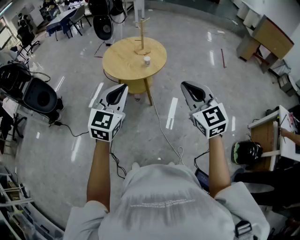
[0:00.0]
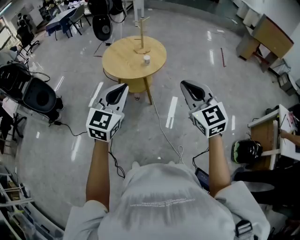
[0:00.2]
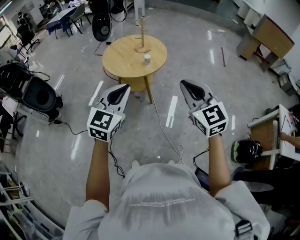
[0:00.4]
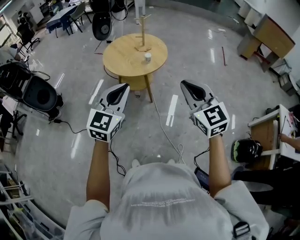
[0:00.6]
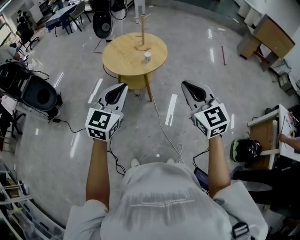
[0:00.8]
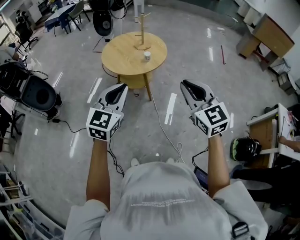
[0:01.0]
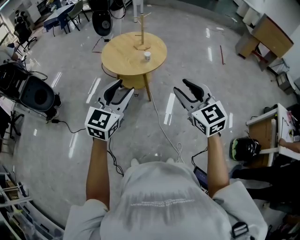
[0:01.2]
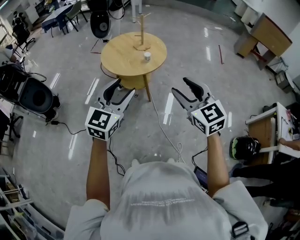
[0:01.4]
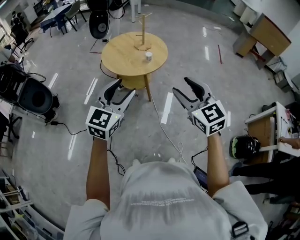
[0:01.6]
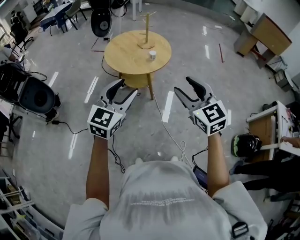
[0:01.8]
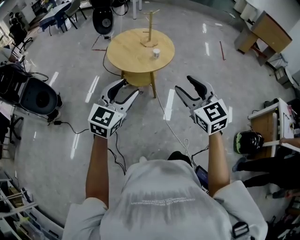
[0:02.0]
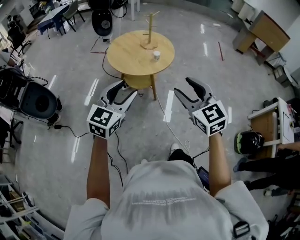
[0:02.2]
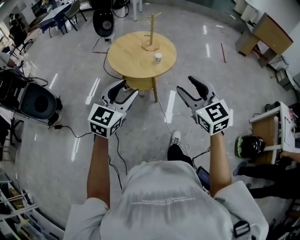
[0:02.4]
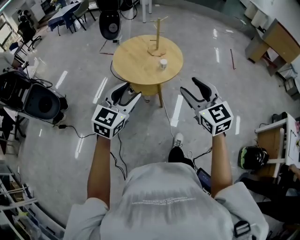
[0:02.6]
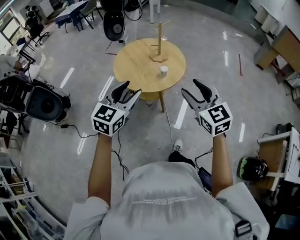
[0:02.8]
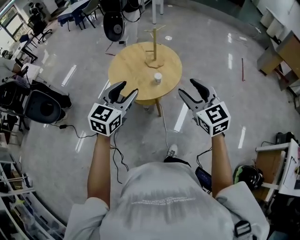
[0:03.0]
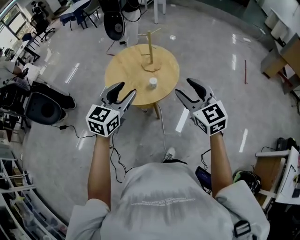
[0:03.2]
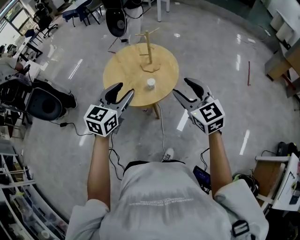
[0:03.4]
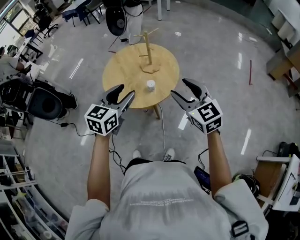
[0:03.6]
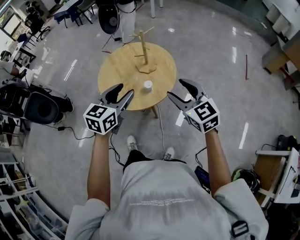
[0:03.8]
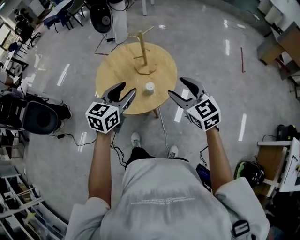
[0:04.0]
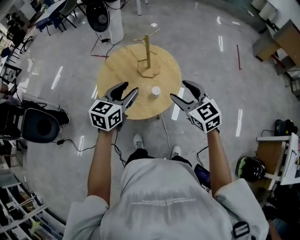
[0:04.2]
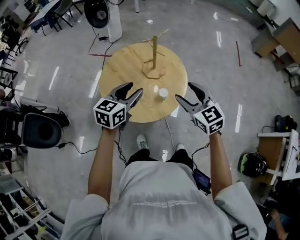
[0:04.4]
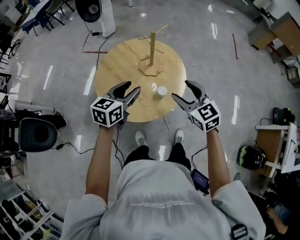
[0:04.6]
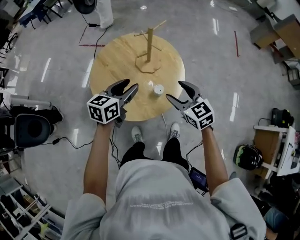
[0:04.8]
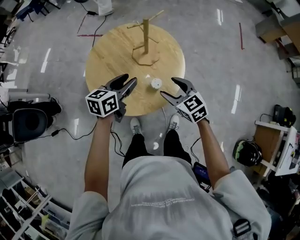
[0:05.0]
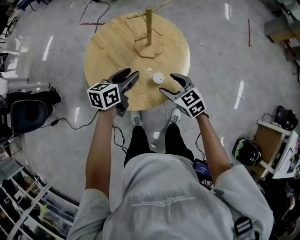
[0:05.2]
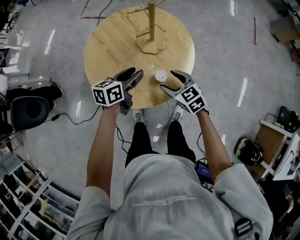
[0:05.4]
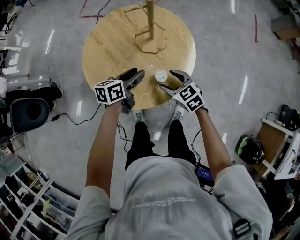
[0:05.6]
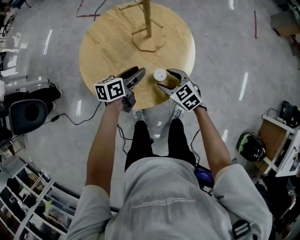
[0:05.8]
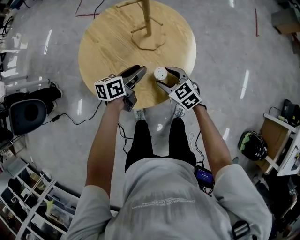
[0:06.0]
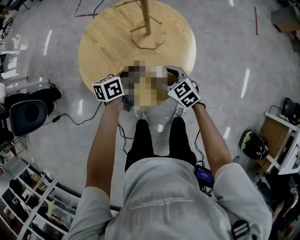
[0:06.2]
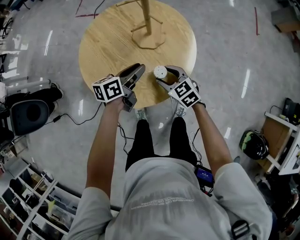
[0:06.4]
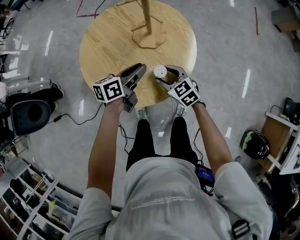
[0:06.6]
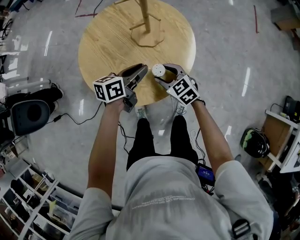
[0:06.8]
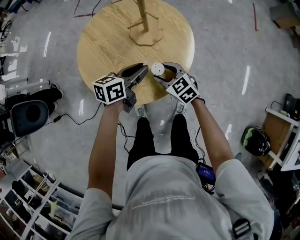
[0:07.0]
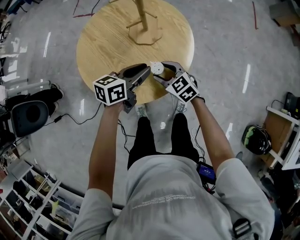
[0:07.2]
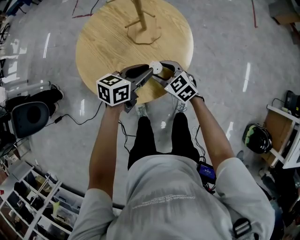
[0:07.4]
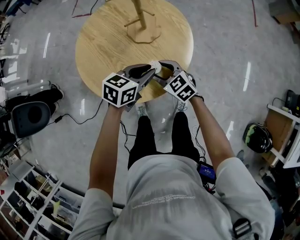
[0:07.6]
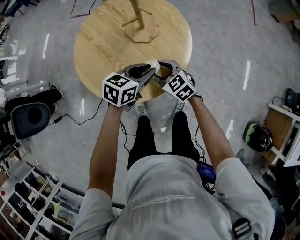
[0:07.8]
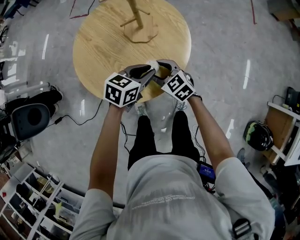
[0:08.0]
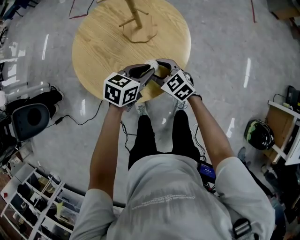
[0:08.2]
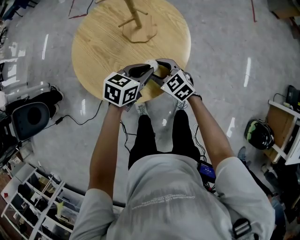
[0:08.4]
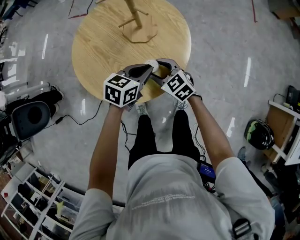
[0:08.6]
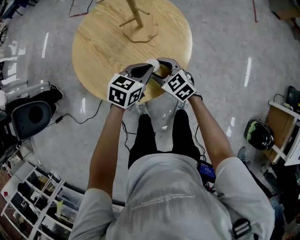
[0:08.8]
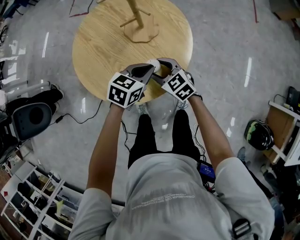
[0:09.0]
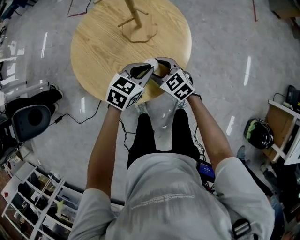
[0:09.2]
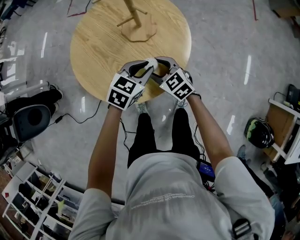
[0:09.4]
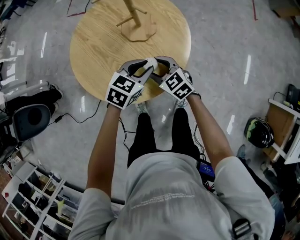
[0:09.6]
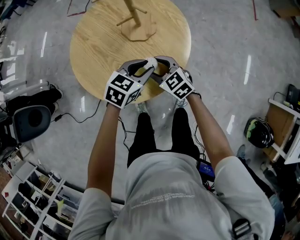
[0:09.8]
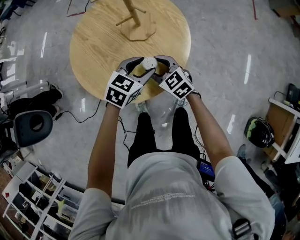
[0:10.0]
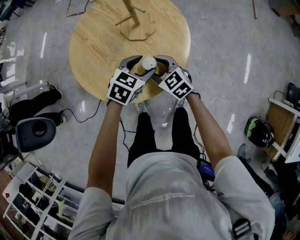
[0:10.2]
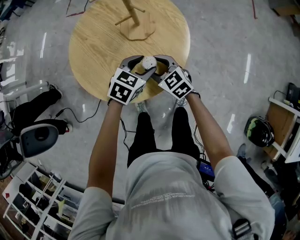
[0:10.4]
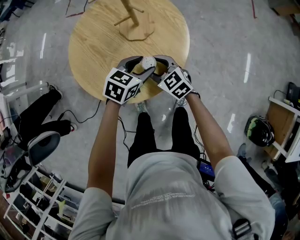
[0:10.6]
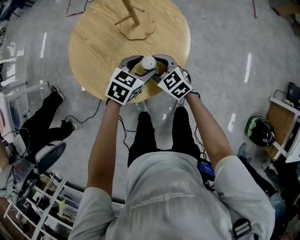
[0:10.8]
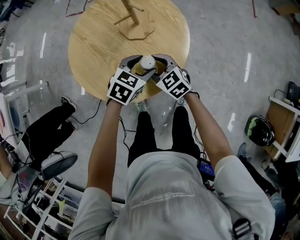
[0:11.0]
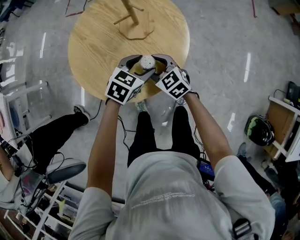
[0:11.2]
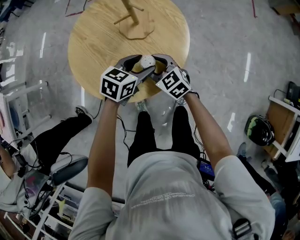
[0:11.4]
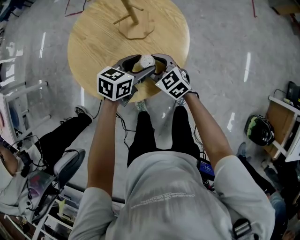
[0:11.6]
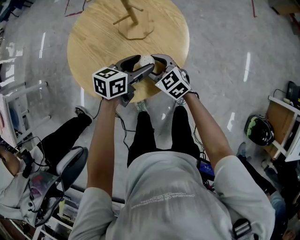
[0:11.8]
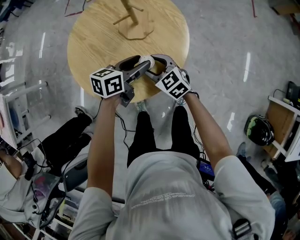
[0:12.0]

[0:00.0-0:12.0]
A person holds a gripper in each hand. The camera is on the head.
0.0 to 1.6 s: The right gripper travels to the left by some 5 cm, and opens its fingers, while the left gripper opens its fingers.
1.6 to 3.0 s: The grippers both shift forward by some 25 cm.
3.0 to 4.4 s: Both grippers travel together forward and downward, some 25 cm. The left gripper changes its angle by approximately 20 degrees.
4.4 to 6.0 s: Both grippers move downward, roughly 25 cm. The right gripper rotates approximately 30 degrees; the left gripper swivels some 40 degrees.
6.0 to 7.6 s: The left gripper goes about 10 cm to the right and backward, and changes its angle by approximately 30 degrees.
7.6 to 9.0 s: The grippers make only small movements.
9.0 to 10.4 s: The left gripper opens up.
10.4 to 12.0 s: The left gripper swivels some 40 degrees.

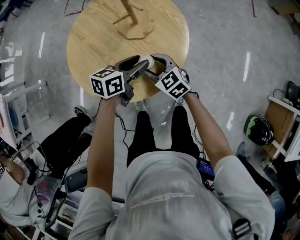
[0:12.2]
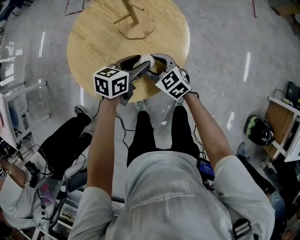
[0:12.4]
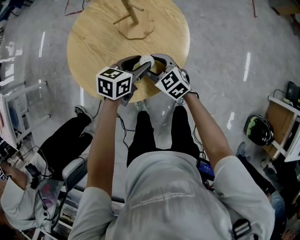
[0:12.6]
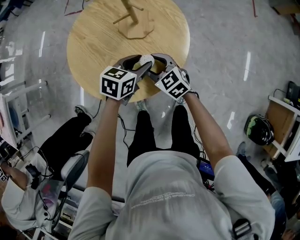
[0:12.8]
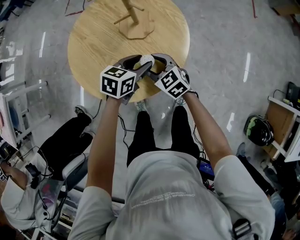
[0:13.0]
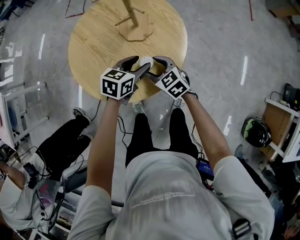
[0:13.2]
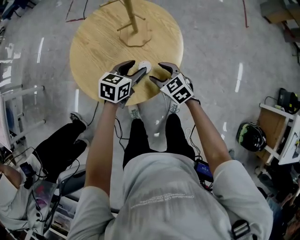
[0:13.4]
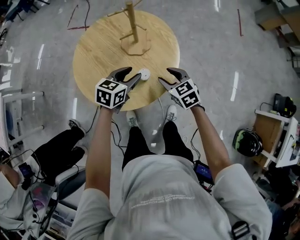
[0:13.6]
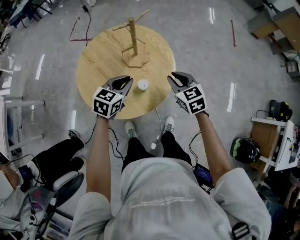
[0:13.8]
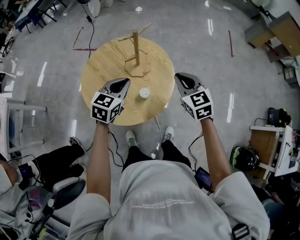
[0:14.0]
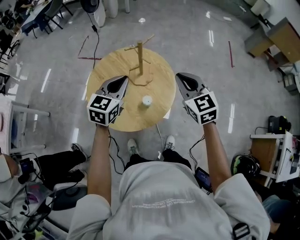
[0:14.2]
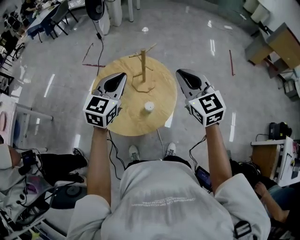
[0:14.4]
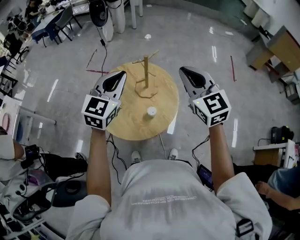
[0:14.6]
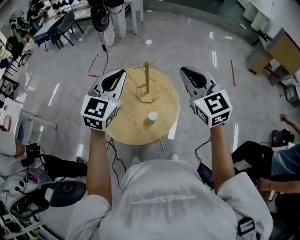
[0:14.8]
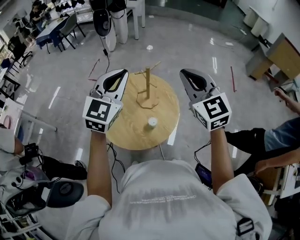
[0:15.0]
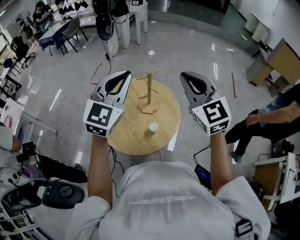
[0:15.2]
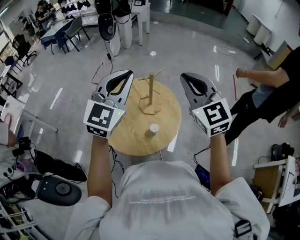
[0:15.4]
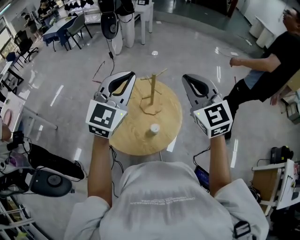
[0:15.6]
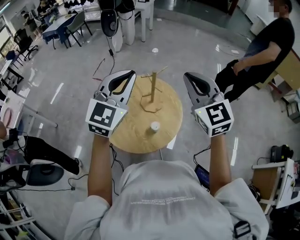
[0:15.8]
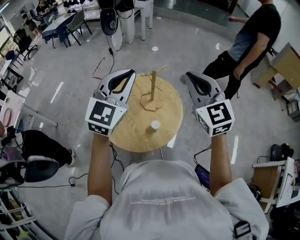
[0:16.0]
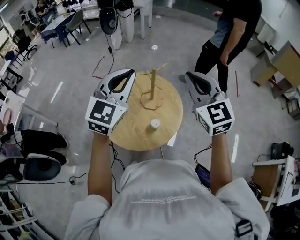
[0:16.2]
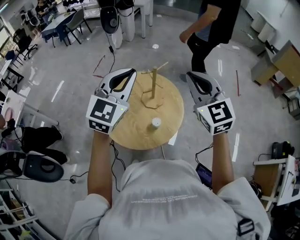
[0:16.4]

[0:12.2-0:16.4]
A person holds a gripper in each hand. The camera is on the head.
12.2 to 13.6 s: The left gripper rotates approximately 20 degrees; the right gripper travels to the right and upward by some 10 cm.
13.6 to 15.0 s: The grippers both shift upward by approximately 40 cm. The left gripper tilts its fingers approximately 30 degrees upward, and closes its fingers; the right gripper tips its fingers upward by about 30 degrees, and closes.
15.0 to 16.4 s: There are only small adjustments of the grippers.

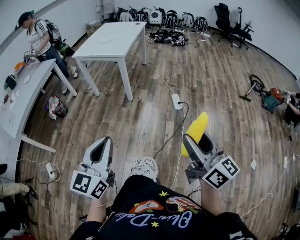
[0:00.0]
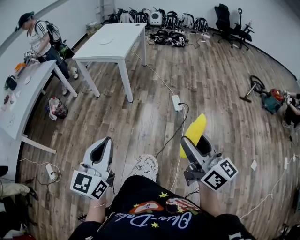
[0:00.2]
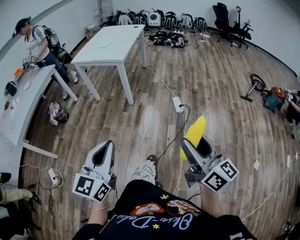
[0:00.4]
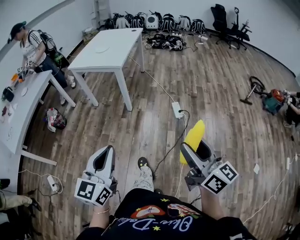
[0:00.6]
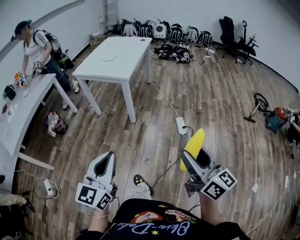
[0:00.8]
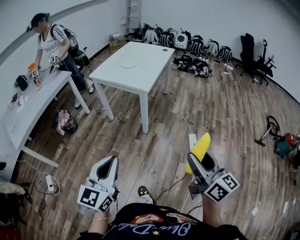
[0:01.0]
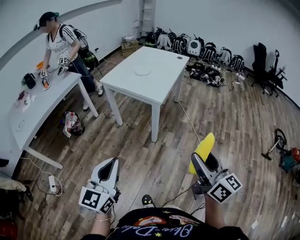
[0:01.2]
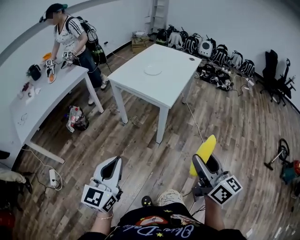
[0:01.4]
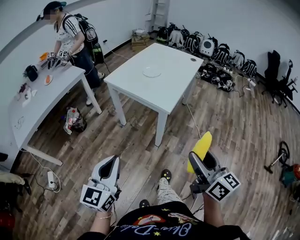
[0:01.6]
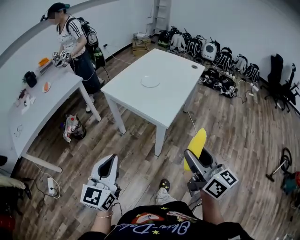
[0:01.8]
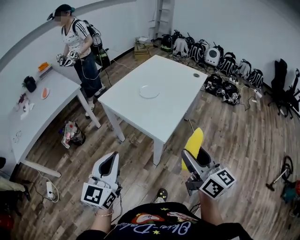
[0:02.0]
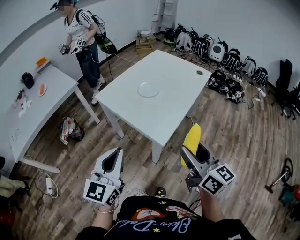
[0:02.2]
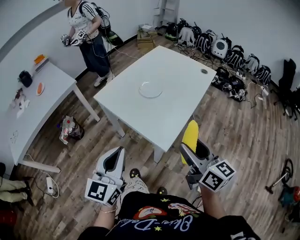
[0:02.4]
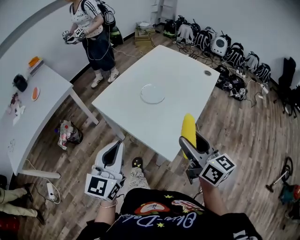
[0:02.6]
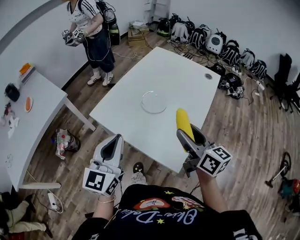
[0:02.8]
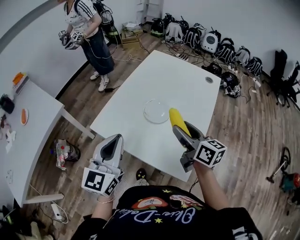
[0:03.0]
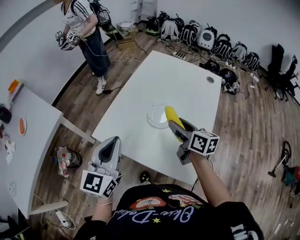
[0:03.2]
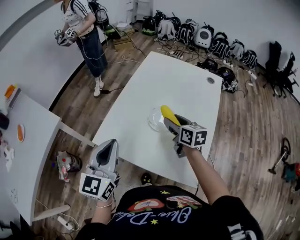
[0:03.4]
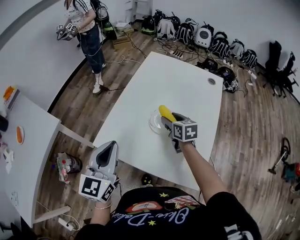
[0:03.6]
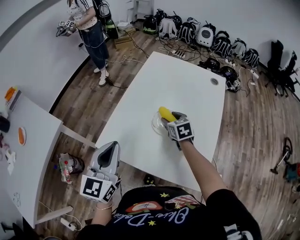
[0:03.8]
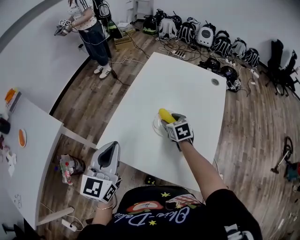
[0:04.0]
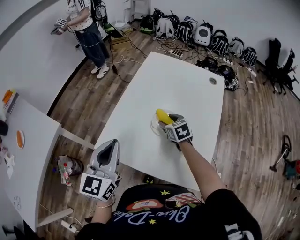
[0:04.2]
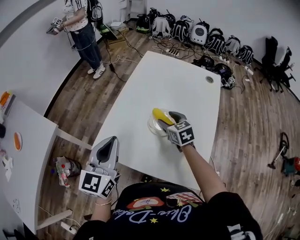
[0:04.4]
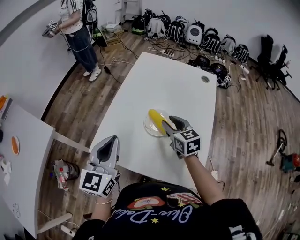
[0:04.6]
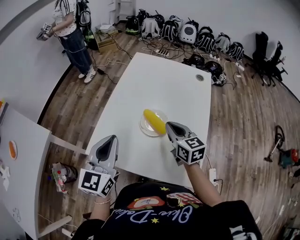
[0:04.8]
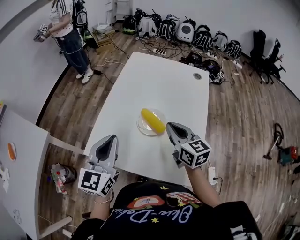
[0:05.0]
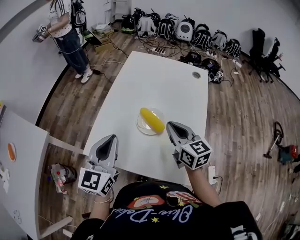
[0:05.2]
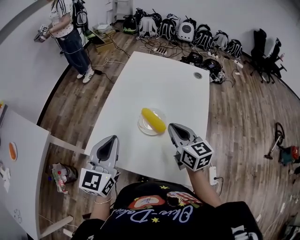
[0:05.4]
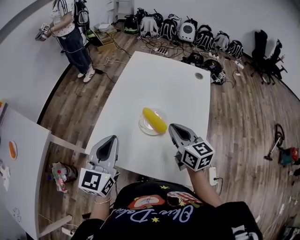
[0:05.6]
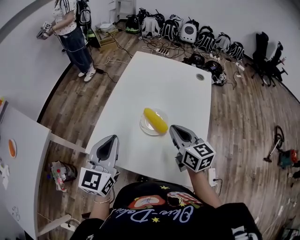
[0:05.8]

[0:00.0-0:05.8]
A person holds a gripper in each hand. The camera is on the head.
0.0 to 1.4 s: Both grippers move forward, some 40 cm.
1.4 to 2.8 s: The two grippers travel together, forward, roughly 60 cm.
2.8 to 4.4 s: The left gripper travels forward and to the left by roughly 20 cm; the right gripper moves forward, downward and to the left, about 30 cm, and turns by approximately 40 degrees.
4.4 to 5.8 s: The right gripper travels upward, backward and to the right by roughly 15 cm, changes its angle by approximately 20 degrees, and closes up.

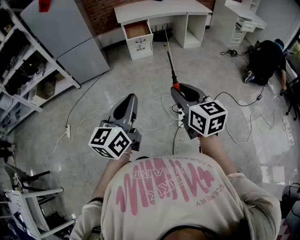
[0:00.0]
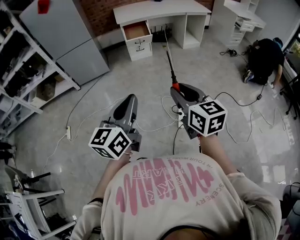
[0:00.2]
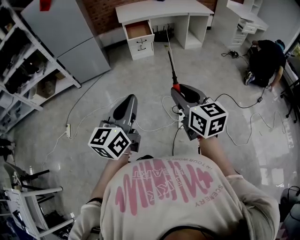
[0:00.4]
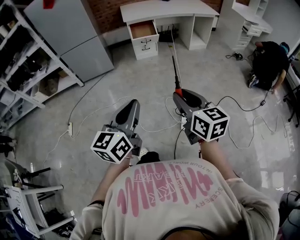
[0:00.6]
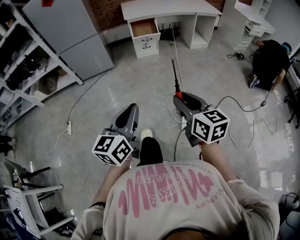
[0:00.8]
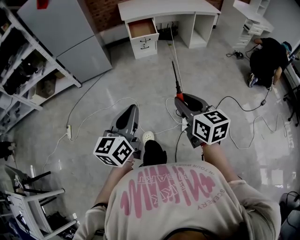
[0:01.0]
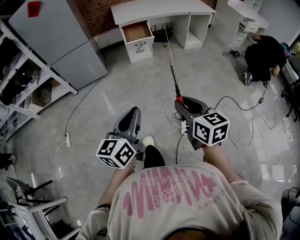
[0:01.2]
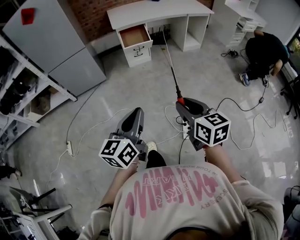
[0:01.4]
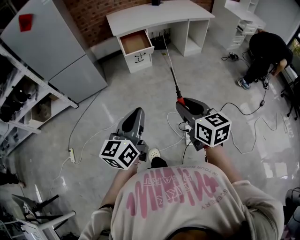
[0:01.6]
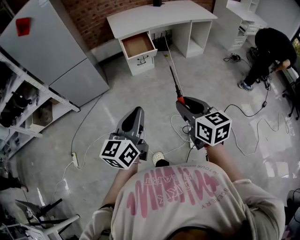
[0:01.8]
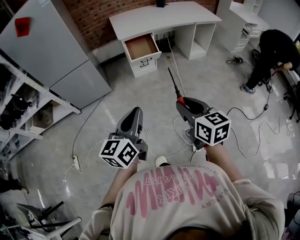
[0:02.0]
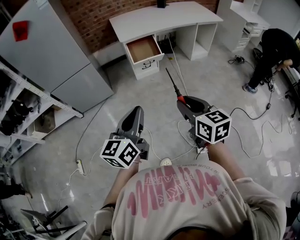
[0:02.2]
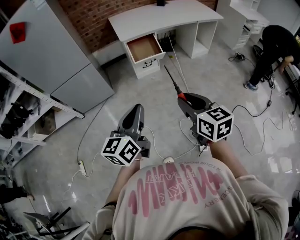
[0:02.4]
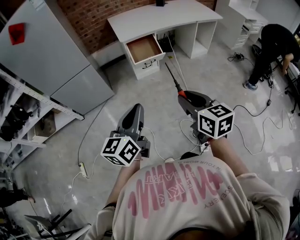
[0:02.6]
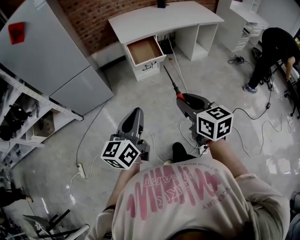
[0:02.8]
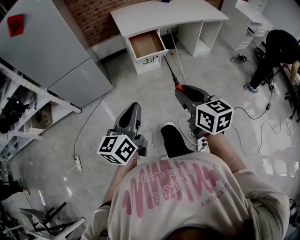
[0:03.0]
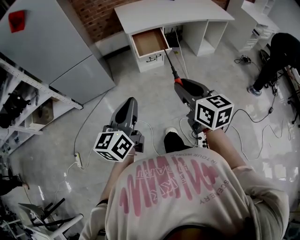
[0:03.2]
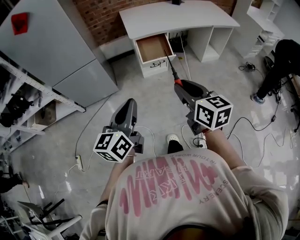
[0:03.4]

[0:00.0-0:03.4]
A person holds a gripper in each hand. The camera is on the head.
0.0 to 1.6 s: The two grippers go some 20 cm forward.
1.6 to 3.4 s: The right gripper moves forward, approximately 30 cm; the left gripper is displaced forward and to the left by some 30 cm.
